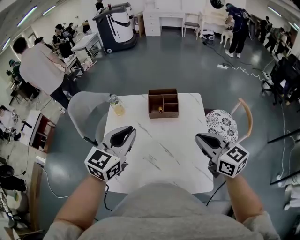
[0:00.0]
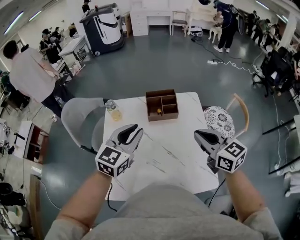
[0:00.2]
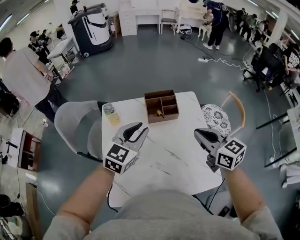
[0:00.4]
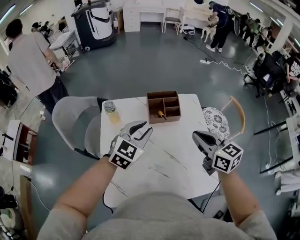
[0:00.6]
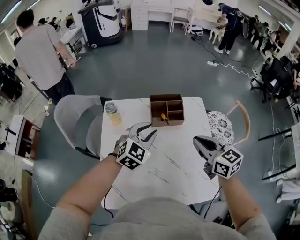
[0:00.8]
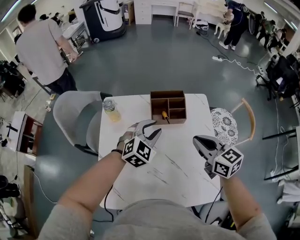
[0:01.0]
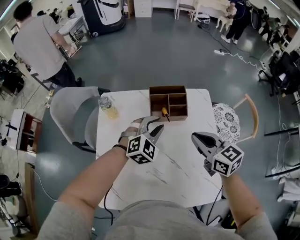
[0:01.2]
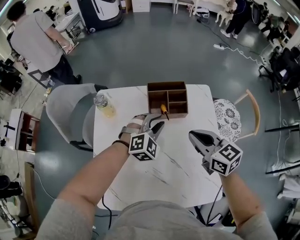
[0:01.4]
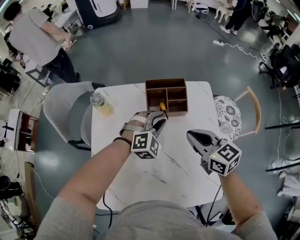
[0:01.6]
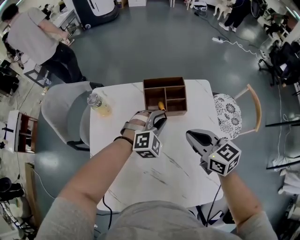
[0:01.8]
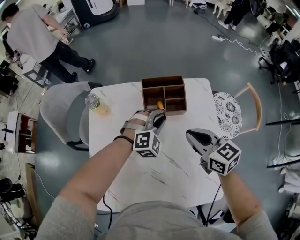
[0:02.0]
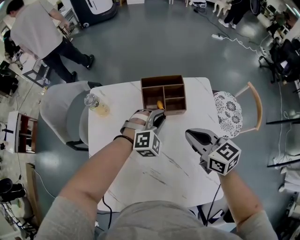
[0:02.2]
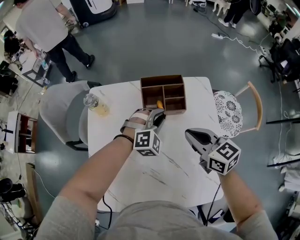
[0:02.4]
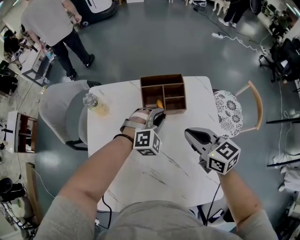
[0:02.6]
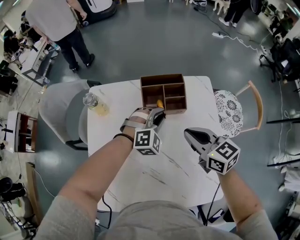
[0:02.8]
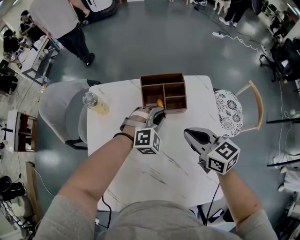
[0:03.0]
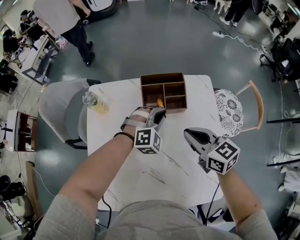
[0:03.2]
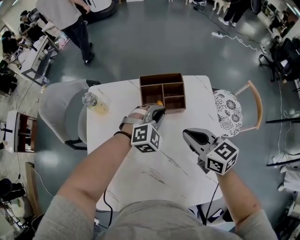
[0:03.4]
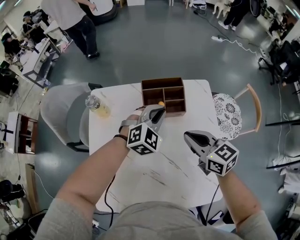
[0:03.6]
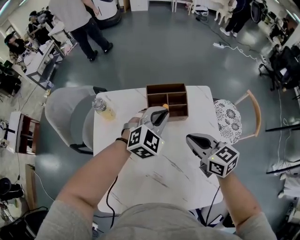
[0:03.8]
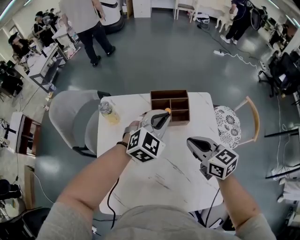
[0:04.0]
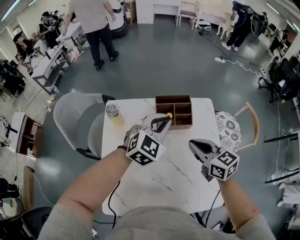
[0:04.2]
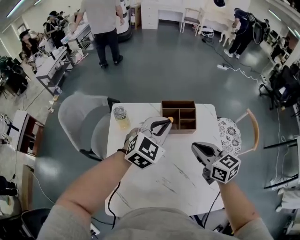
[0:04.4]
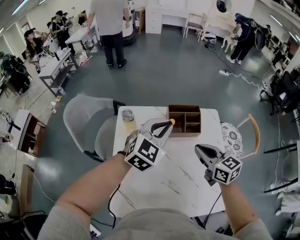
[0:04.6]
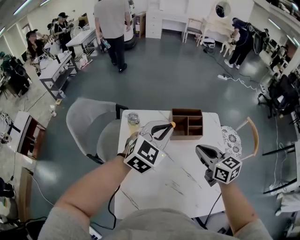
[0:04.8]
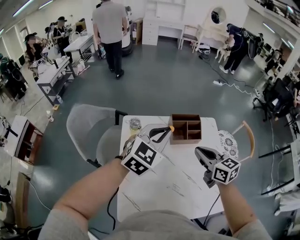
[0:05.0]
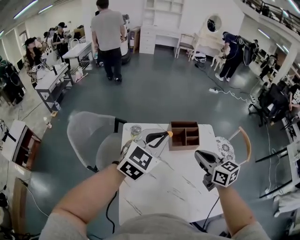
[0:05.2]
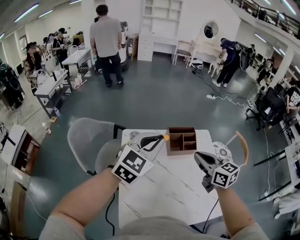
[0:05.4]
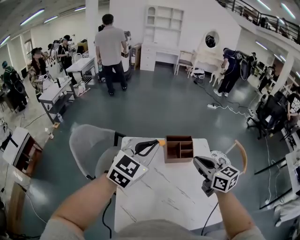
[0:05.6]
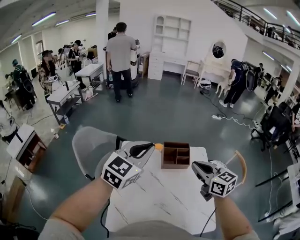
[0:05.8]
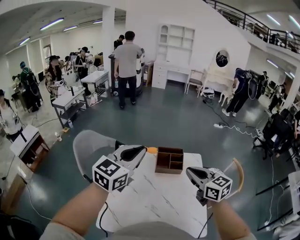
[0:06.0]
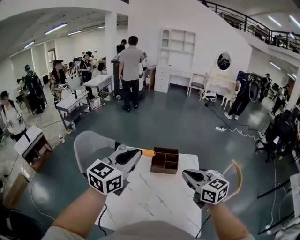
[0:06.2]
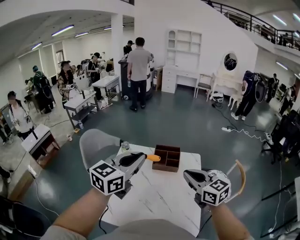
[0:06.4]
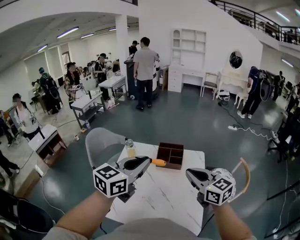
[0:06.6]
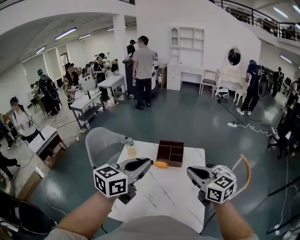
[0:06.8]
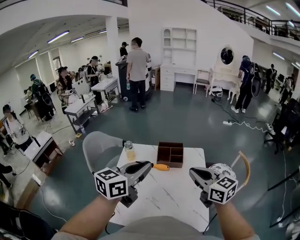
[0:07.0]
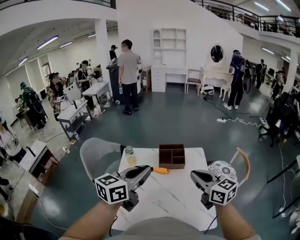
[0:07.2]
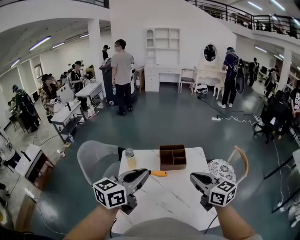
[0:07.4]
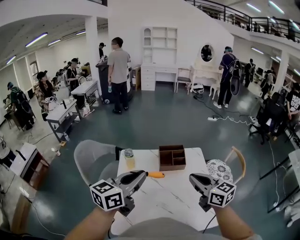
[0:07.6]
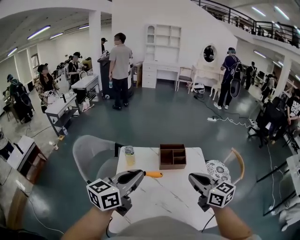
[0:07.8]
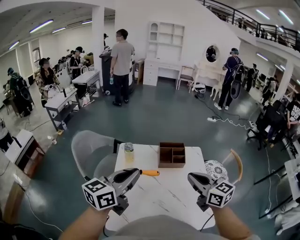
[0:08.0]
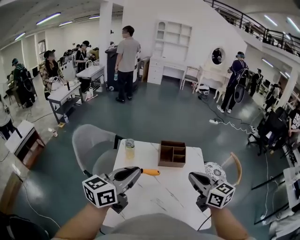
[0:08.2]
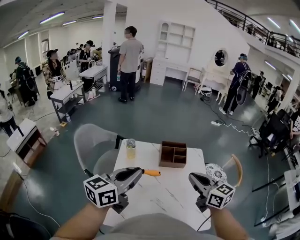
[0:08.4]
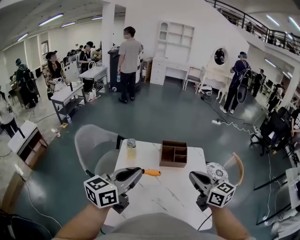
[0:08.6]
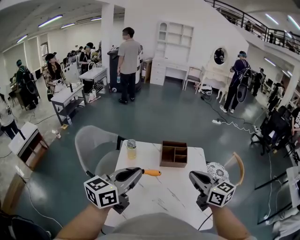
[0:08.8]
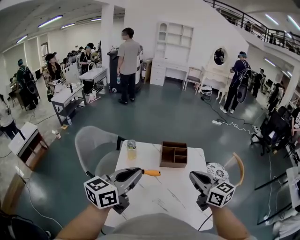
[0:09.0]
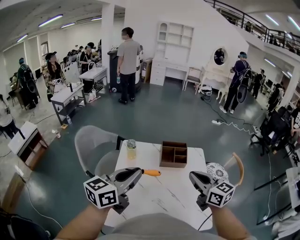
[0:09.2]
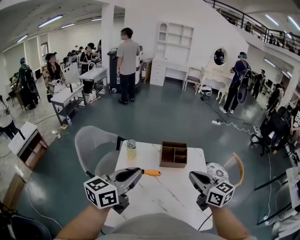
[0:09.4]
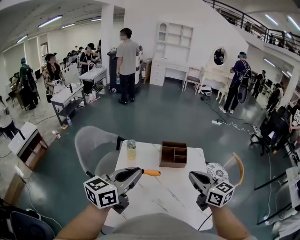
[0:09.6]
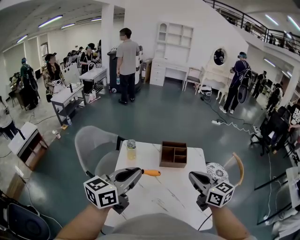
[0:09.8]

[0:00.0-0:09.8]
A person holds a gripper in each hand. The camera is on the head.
0:00.0 to 0:01.4: The left gripper travels downward, forward and to the right by some 30 cm, twists some 40 degrees clockwise, seen from behind, and opens up; the right gripper travels forward, downward and to the left by roughly 20 cm.
0:01.4 to 0:02.8: The left gripper changes place by about 5 cm.
0:02.8 to 0:04.2: The right gripper moves about 5 cm. The left gripper is displaced upward by some 15 cm, and rotates about 30 degrees.
0:04.2 to 0:05.6: The right gripper moves upward and to the left, about 15 cm. Meanwhile the left gripper goes roughly 25 cm upward, to the left and backward.
0:05.6 to 0:07.0: Both grippers travel together backward and to the right, roughly 15 cm. The left gripper changes its angle by roughly 30 degrees.
0:07.0 to 0:08.4: The right gripper goes roughly 5 cm to the left. Meanwhile the left gripper shifts about 10 cm to the left.
0:08.4 to 0:09.8: Both grippers stay put.

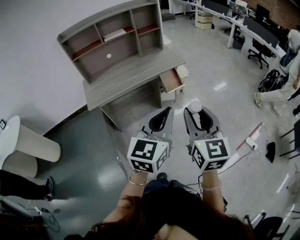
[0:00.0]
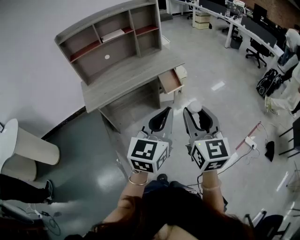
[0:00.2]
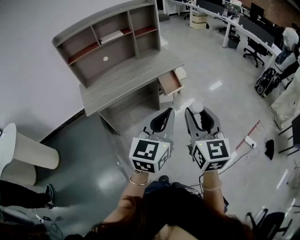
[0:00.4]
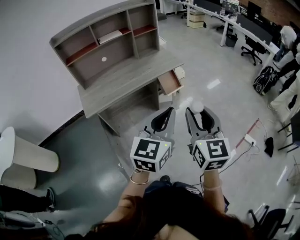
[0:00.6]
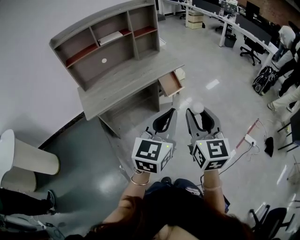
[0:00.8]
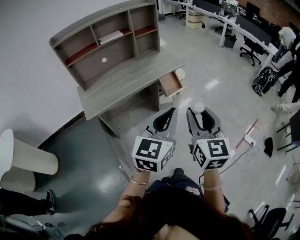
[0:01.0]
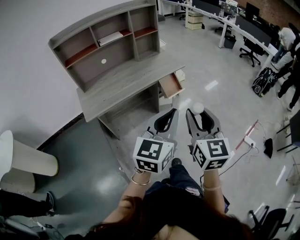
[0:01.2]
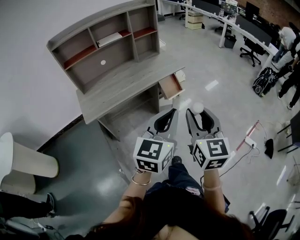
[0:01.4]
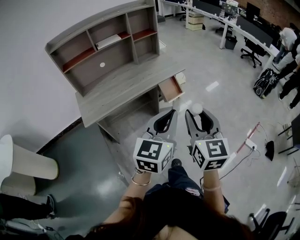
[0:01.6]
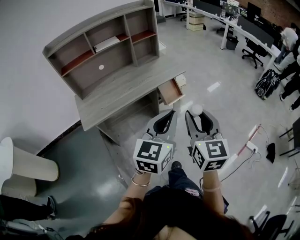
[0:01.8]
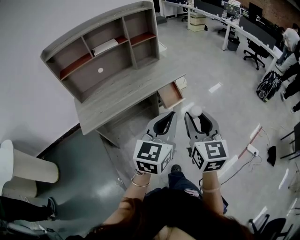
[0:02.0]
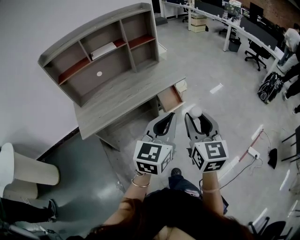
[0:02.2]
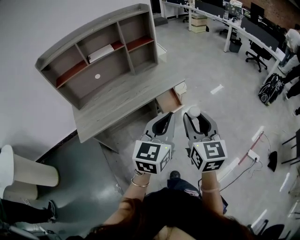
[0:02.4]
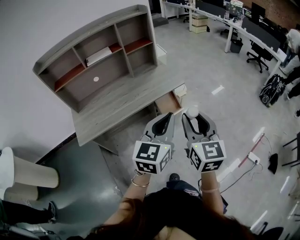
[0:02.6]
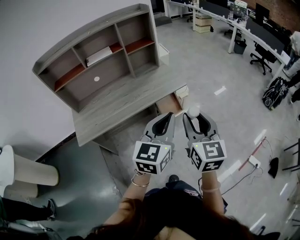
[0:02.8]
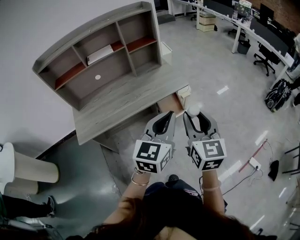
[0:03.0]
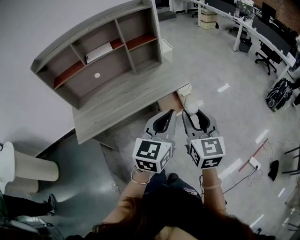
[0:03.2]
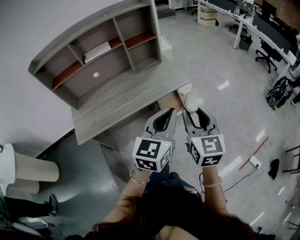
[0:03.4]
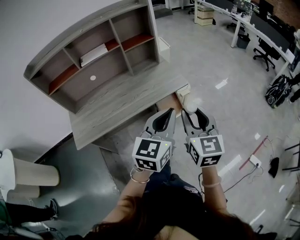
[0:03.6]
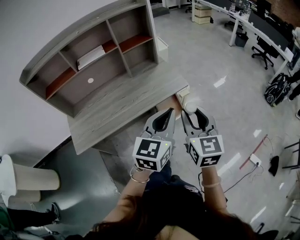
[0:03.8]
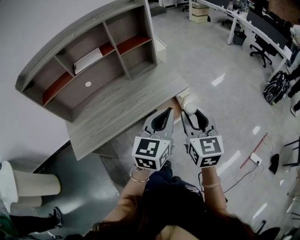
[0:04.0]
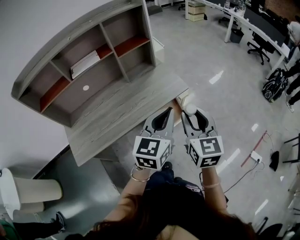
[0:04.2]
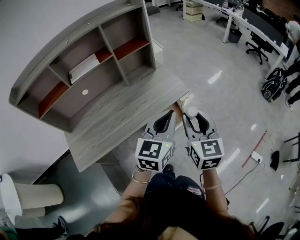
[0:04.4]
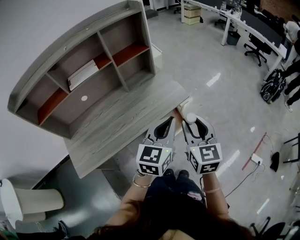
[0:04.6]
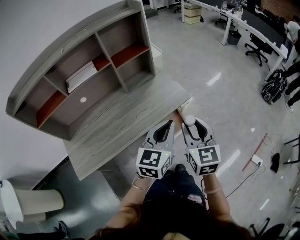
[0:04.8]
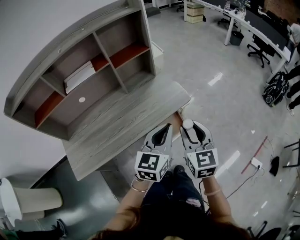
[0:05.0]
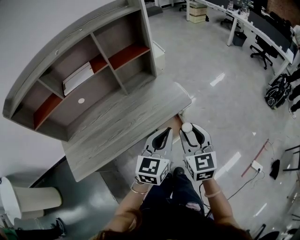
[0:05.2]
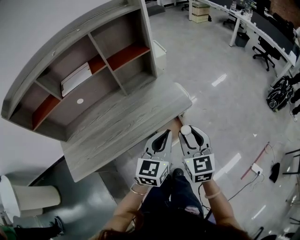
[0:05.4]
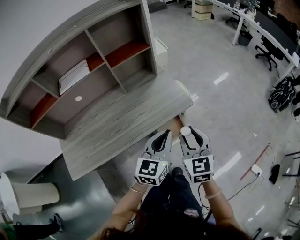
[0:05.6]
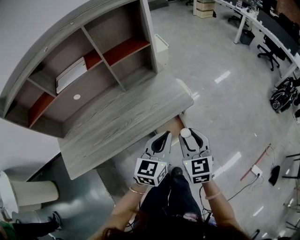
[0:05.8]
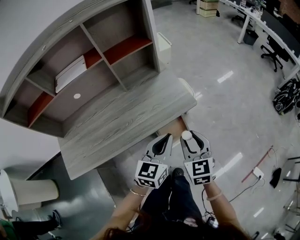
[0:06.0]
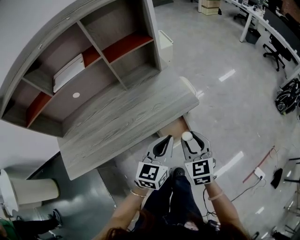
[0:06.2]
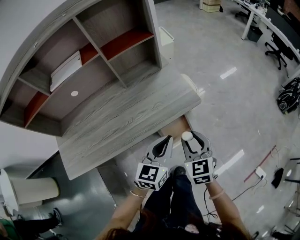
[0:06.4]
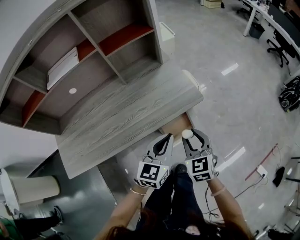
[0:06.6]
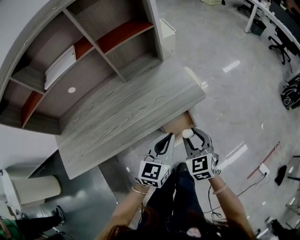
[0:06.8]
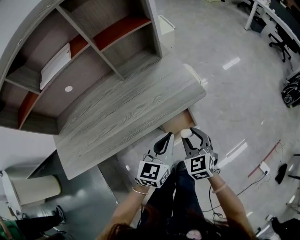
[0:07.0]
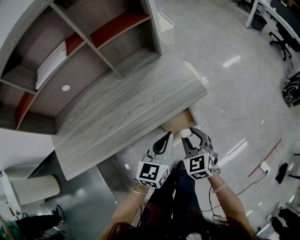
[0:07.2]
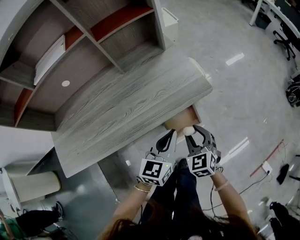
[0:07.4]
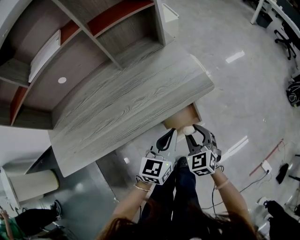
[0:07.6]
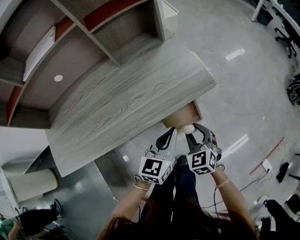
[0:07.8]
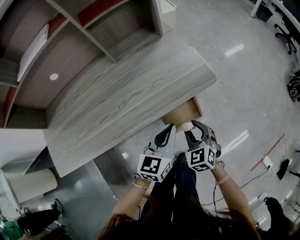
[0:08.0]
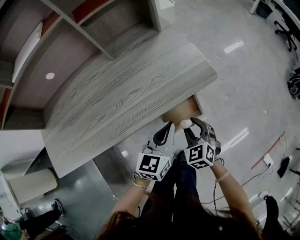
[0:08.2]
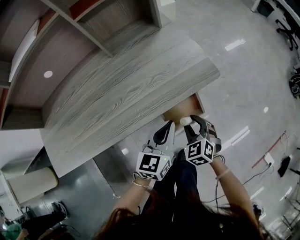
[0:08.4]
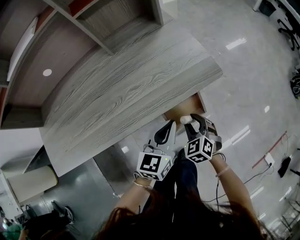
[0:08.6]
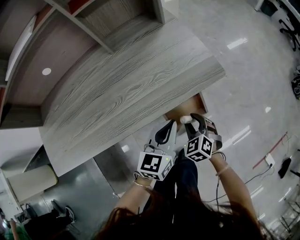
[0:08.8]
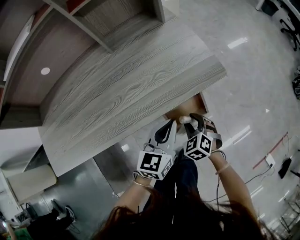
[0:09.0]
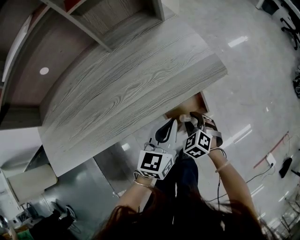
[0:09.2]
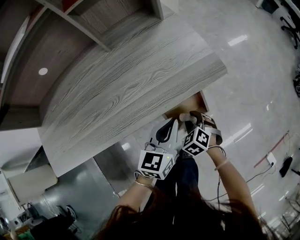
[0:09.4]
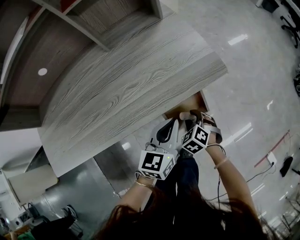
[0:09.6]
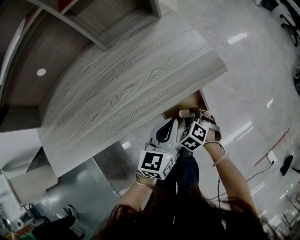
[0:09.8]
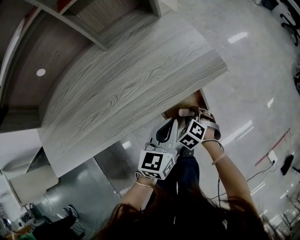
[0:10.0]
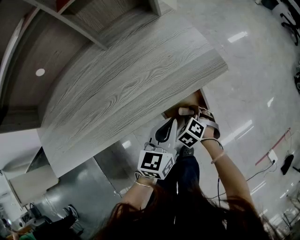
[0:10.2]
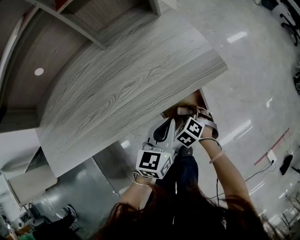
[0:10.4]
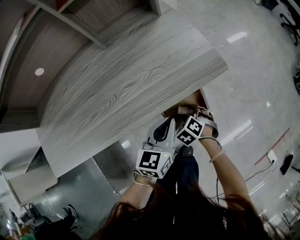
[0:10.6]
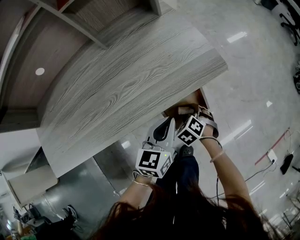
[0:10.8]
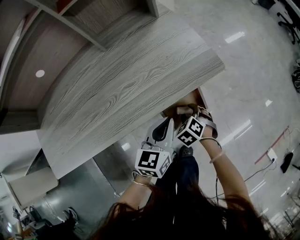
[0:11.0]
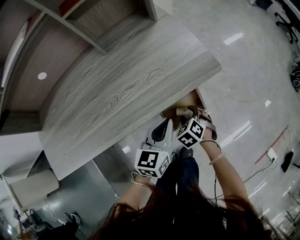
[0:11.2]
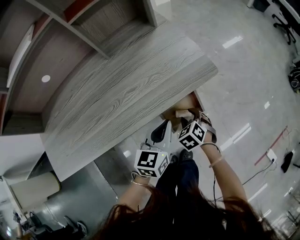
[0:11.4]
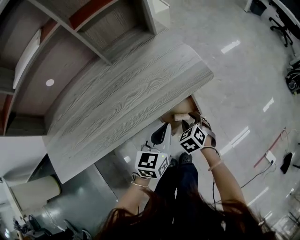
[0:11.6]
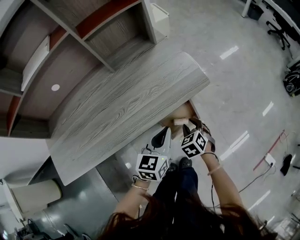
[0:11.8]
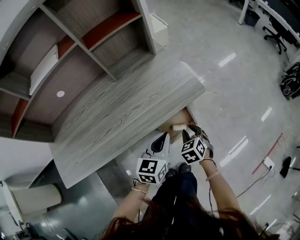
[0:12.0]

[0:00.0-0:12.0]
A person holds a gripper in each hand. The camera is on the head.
0:00.0 to 0:01.6: The grippers both shift forward and to the left by roughly 10 cm.
0:01.6 to 0:03.0: Both grippers move forward, some 20 cm.
0:03.0 to 0:04.4: The two grippers go some 15 cm forward.
0:04.4 to 0:06.0: The two grippers go approximately 20 cm downward and forward.
0:06.0 to 0:07.6: The grippers both shift downward by roughly 20 cm. The right gripper rotates about 20 degrees.
0:07.6 to 0:09.0: The right gripper is displaced downward by about 15 cm; the left gripper is displaced downward by approximately 5 cm.
0:09.0 to 0:10.4: The right gripper shifts about 5 cm downward.
0:10.4 to 0:12.0: The left gripper goes approximately 10 cm upward, while the right gripper moves upward, about 15 cm, and turns by about 30 degrees.

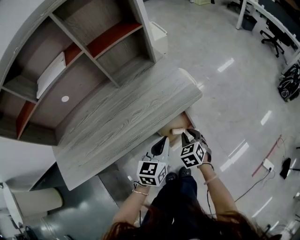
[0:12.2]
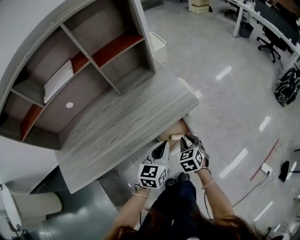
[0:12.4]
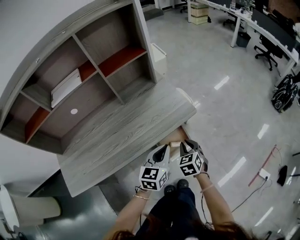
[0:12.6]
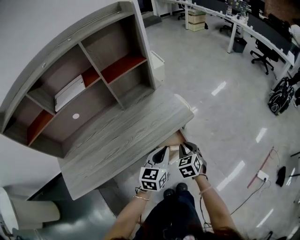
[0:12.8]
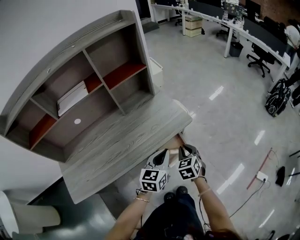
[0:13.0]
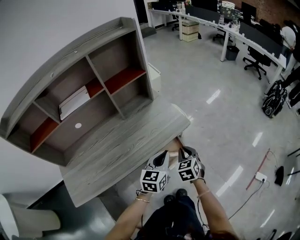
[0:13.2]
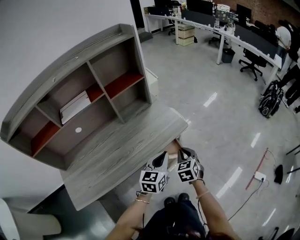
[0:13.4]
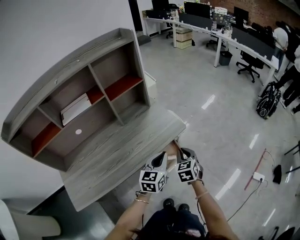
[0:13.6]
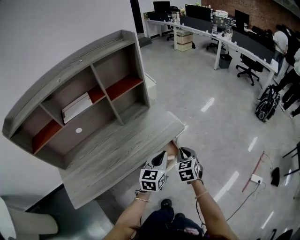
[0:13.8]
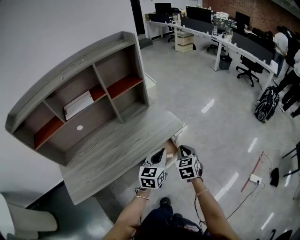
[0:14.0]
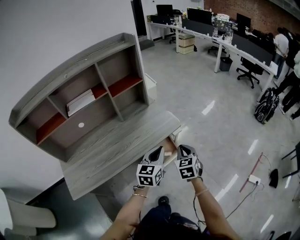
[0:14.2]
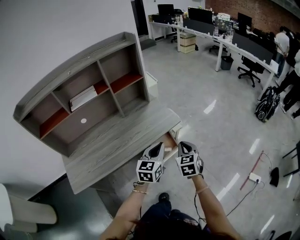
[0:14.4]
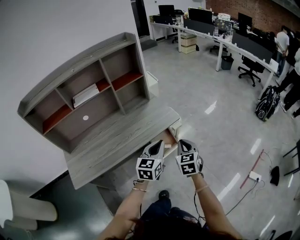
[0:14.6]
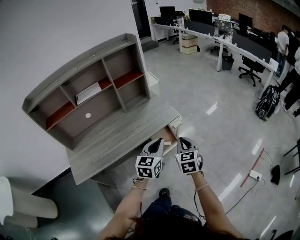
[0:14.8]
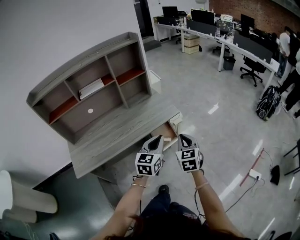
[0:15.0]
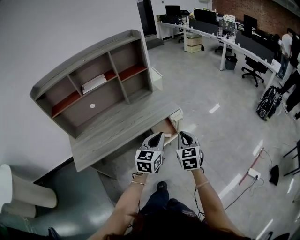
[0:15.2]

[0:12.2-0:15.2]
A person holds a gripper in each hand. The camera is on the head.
0:12.2 to 0:13.8: Both grippers move upward, about 20 cm. The right gripper turns by some 20 degrees.
0:13.8 to 0:15.2: Both grippers travel together backward and upward, some 20 cm.
